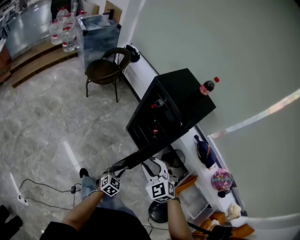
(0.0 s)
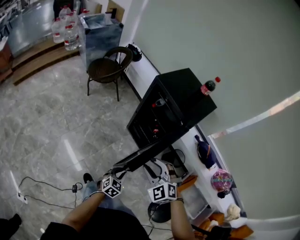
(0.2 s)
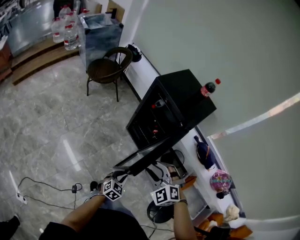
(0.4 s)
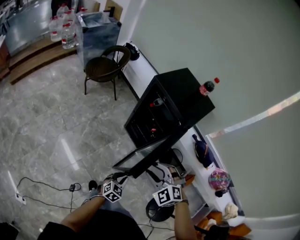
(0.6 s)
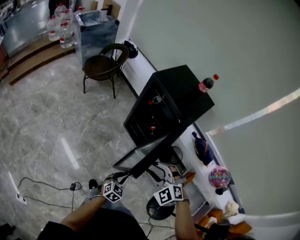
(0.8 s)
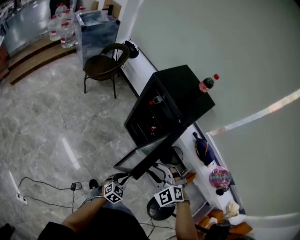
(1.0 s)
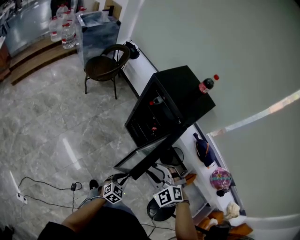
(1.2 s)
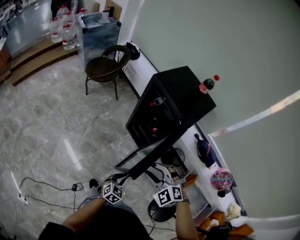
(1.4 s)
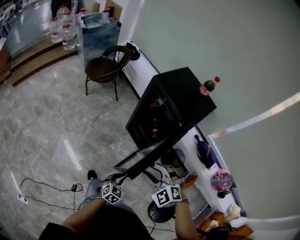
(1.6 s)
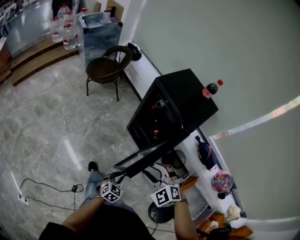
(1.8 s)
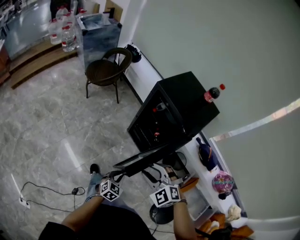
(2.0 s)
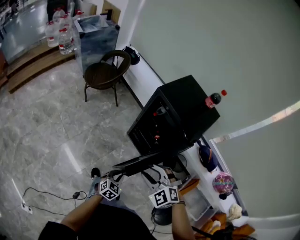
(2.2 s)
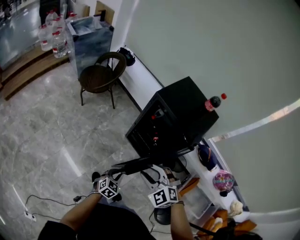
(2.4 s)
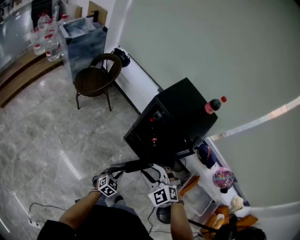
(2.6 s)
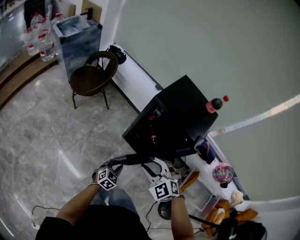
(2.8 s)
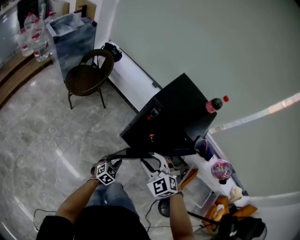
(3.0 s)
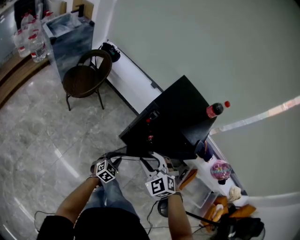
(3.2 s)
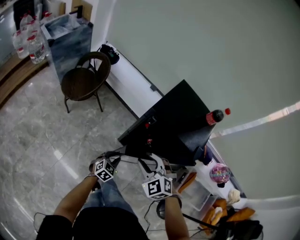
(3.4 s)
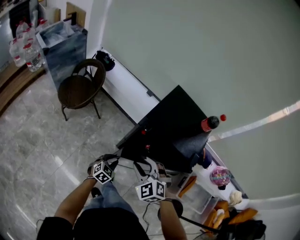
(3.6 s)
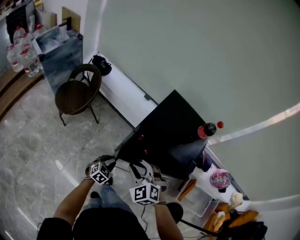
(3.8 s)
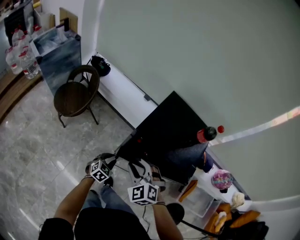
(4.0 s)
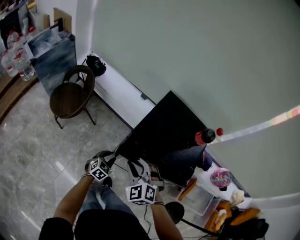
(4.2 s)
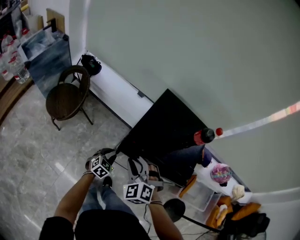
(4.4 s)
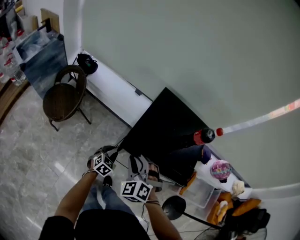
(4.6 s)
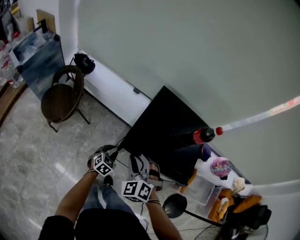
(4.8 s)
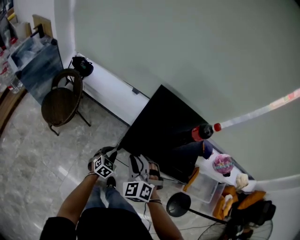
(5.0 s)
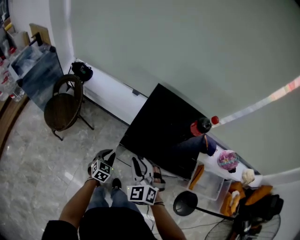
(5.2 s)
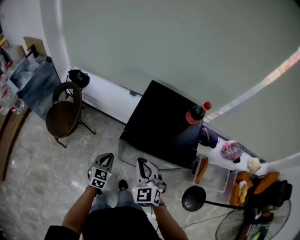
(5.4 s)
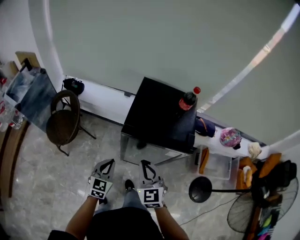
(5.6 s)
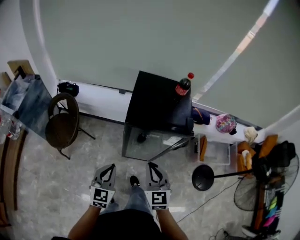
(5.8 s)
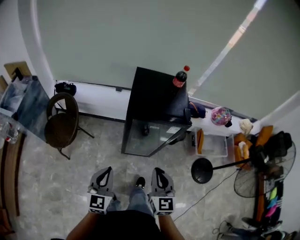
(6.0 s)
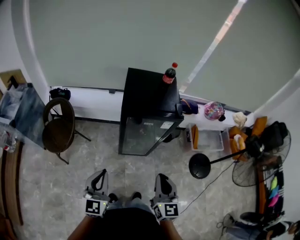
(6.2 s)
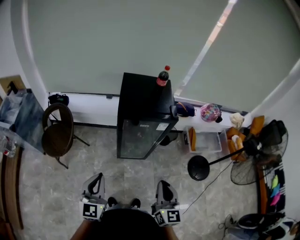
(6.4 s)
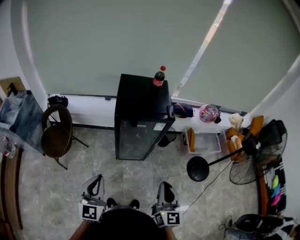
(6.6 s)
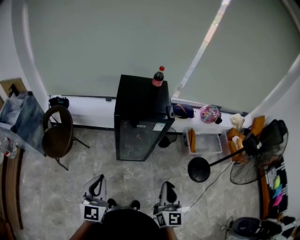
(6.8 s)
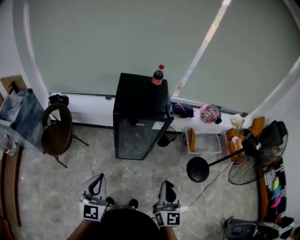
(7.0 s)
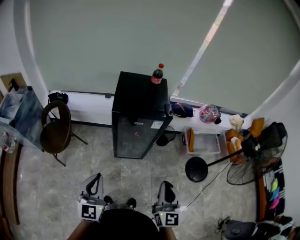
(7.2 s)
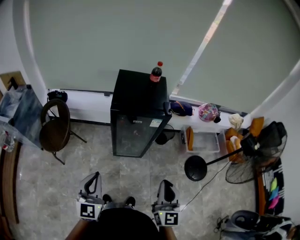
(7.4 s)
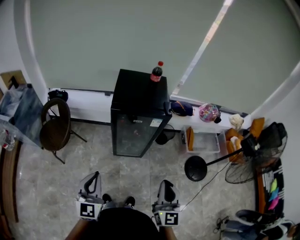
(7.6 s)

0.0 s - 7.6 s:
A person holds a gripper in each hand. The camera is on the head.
1.6 s - 3.0 s: The grippers both shift forward and to the left by roughly 25 cm. The right gripper swivels roughly 20 degrees.
3.0 s - 4.6 s: Both grippers travel together forward, about 25 cm. The right gripper rotates approximately 30 degrees.
4.6 s - 6.0 s: The right gripper travels backward by roughly 25 cm, and twists about 50 degrees clockwise, seen from behind; the left gripper heads upward and backward, covering roughly 35 cm, and tilts its fingers roughly 30 degrees upward.
6.0 s - 7.6 s: The left gripper heads backward and upward, covering some 10 cm, while the right gripper heads to the right, backward and upward, covering about 20 cm.

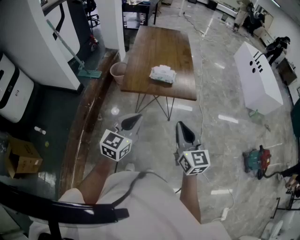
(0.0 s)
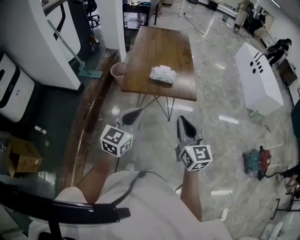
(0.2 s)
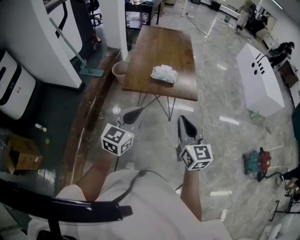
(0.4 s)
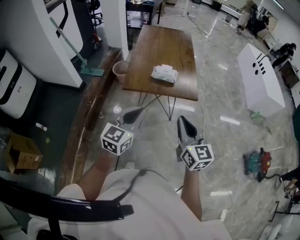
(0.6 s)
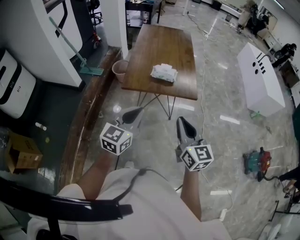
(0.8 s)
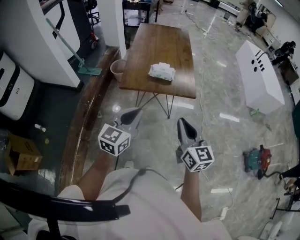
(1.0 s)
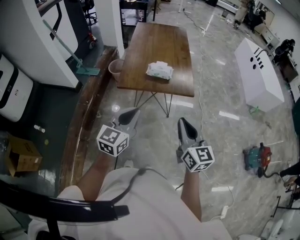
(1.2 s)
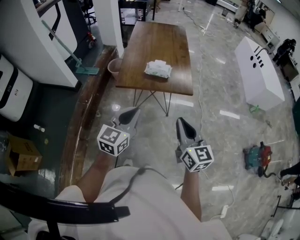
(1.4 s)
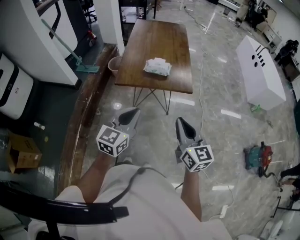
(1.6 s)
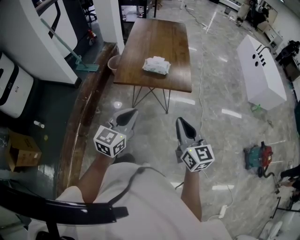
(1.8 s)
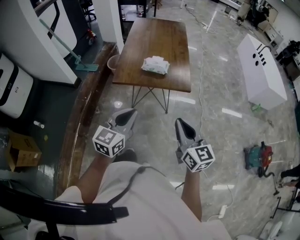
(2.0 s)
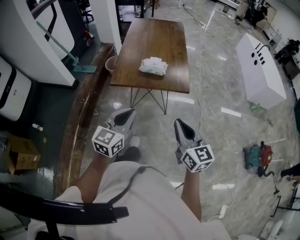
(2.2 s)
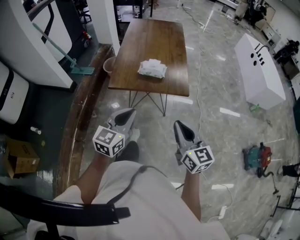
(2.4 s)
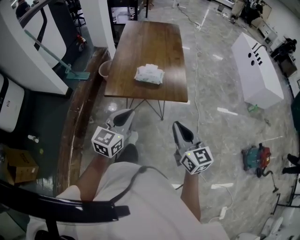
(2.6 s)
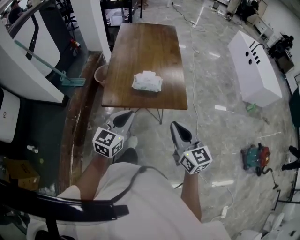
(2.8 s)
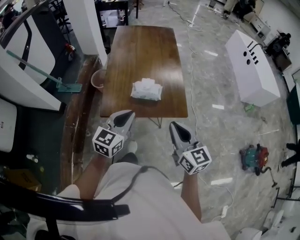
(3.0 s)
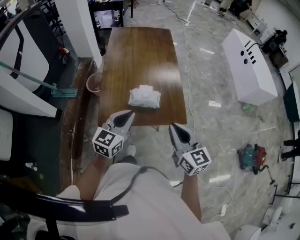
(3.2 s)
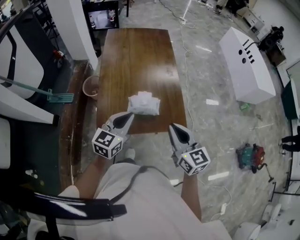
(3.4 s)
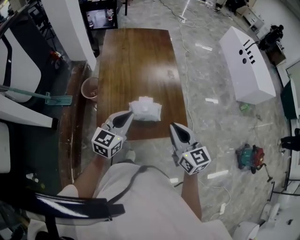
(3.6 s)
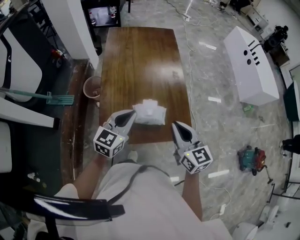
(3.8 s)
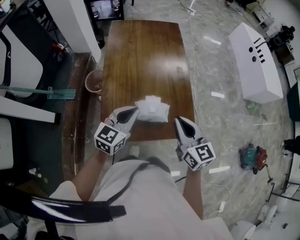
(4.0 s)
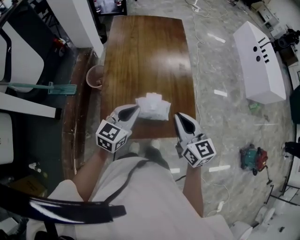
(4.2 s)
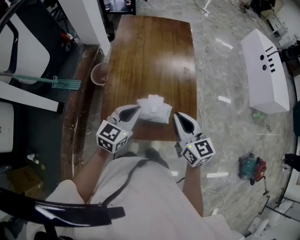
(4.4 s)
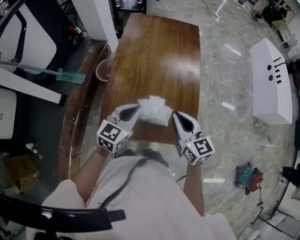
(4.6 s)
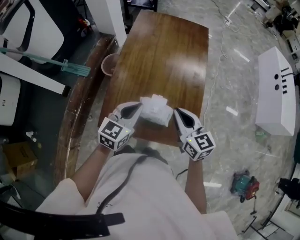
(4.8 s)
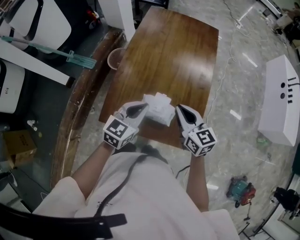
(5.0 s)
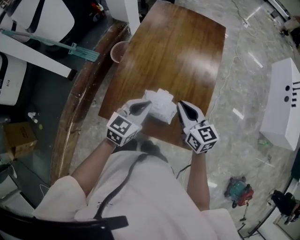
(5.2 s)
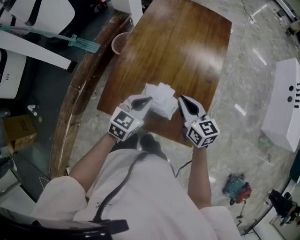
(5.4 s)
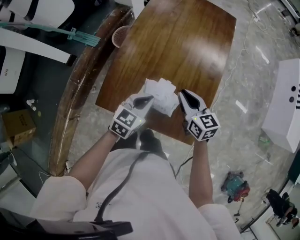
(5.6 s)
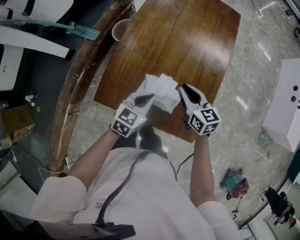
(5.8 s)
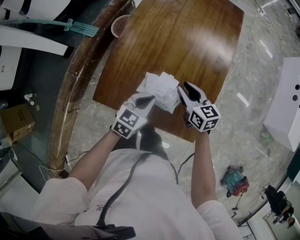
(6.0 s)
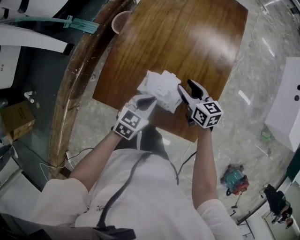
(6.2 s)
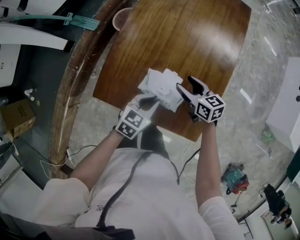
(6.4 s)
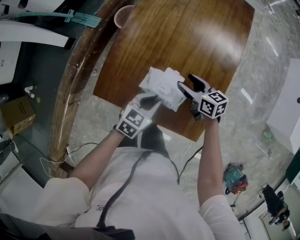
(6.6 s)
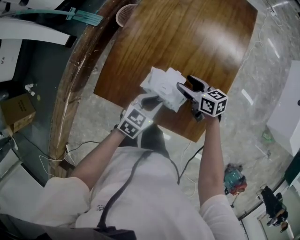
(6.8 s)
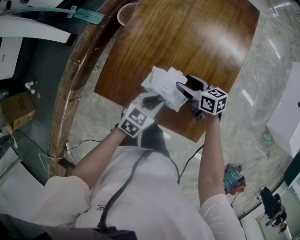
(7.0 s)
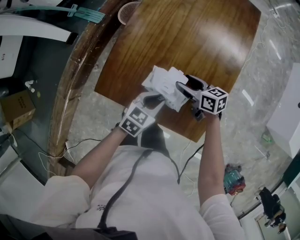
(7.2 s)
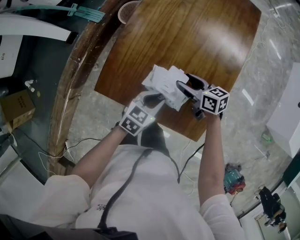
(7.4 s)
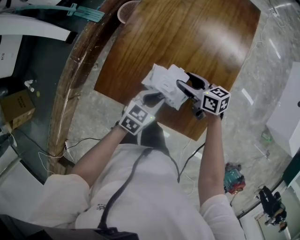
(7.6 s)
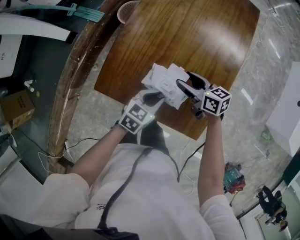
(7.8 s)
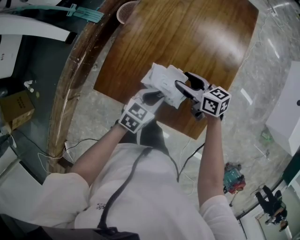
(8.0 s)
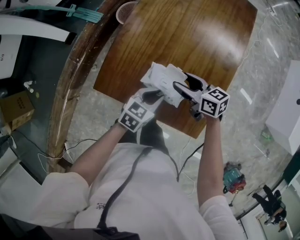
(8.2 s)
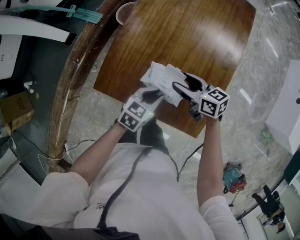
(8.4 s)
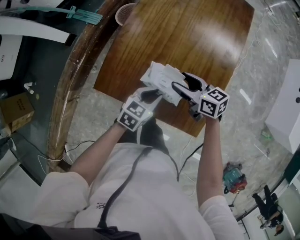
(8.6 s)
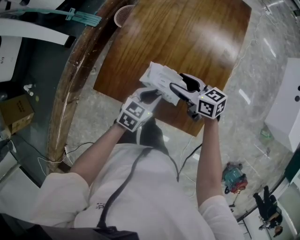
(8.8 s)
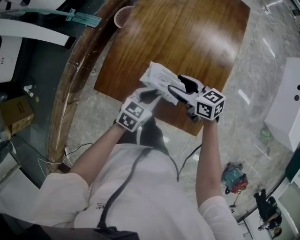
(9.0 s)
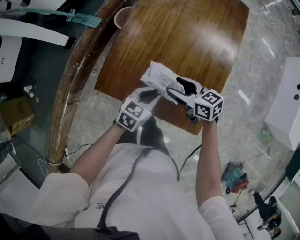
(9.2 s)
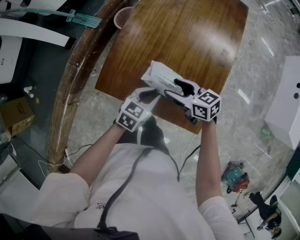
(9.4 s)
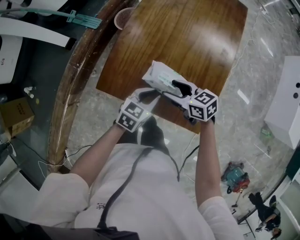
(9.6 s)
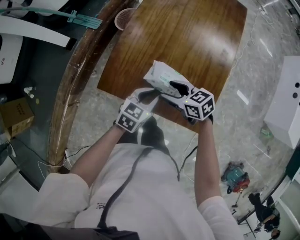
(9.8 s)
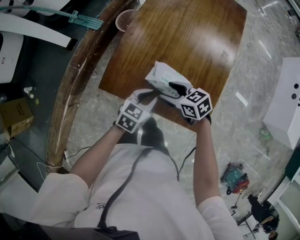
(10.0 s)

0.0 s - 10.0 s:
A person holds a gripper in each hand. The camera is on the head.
0.0 s - 1.4 s: The grippers stay close to where they were, moving slightly.
1.4 s - 2.8 s: Both grippers travel together forward, roughly 15 cm.
2.8 s - 4.2 s: The two grippers go about 30 cm forward.
4.2 s - 5.8 s: The left gripper goes approximately 15 cm downward, and turns by approximately 20 degrees, while the right gripper heads downward and forward, covering roughly 20 cm, and changes its angle by about 30 degrees.
5.8 s - 7.2 s: Both grippers move downward, roughly 10 cm. The right gripper rotates some 30 degrees, and opens.
7.2 s - 8.6 s: The right gripper heads upward, covering roughly 5 cm.
8.6 s - 10.0 s: The right gripper moves to the left and backward, some 10 cm.

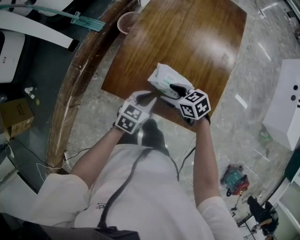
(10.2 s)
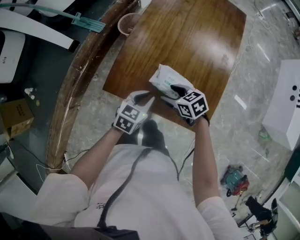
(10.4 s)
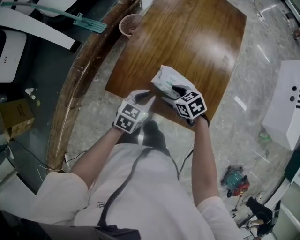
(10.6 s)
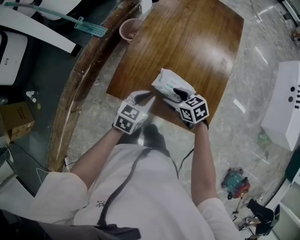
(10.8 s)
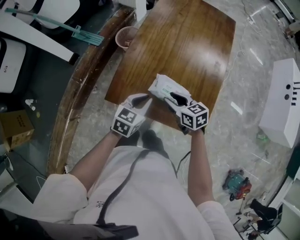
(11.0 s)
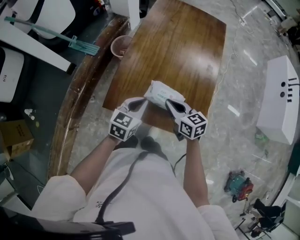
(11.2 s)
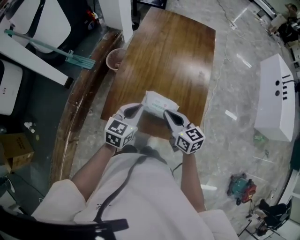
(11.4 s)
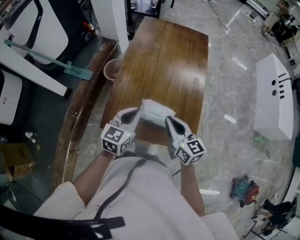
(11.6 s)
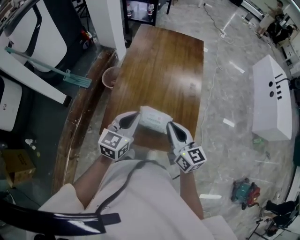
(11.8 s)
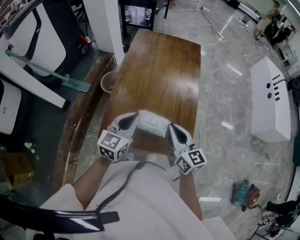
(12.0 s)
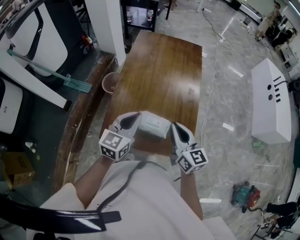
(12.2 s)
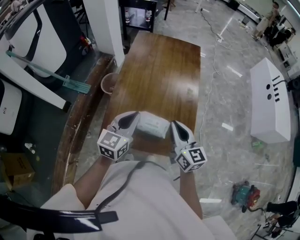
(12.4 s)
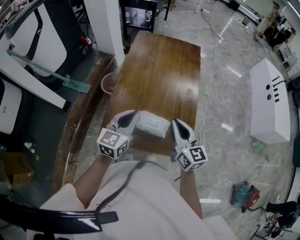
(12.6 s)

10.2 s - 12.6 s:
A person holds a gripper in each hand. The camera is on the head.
10.2 s - 11.4 s: Both grippers move upward, some 15 cm. The right gripper rotates roughly 40 degrees, and closes its fingers.
11.4 s - 12.6 s: The left gripper is displaced upward by about 10 cm. The right gripper moves upward and to the right, some 15 cm, and turns by some 20 degrees.

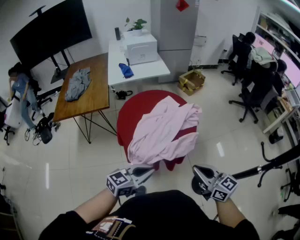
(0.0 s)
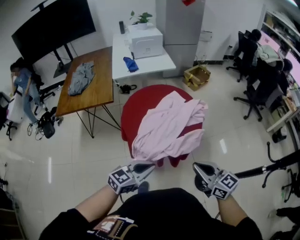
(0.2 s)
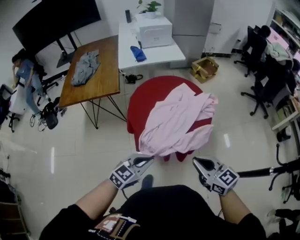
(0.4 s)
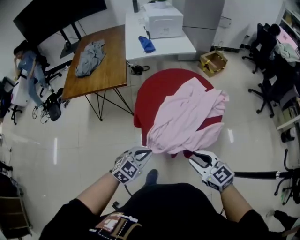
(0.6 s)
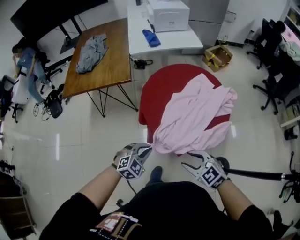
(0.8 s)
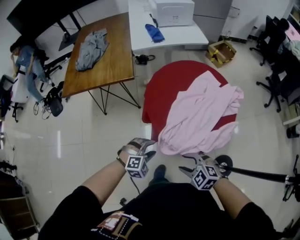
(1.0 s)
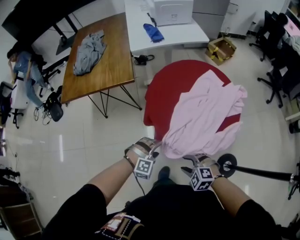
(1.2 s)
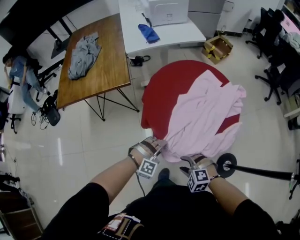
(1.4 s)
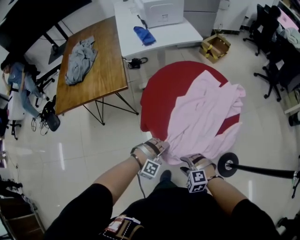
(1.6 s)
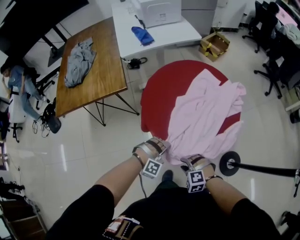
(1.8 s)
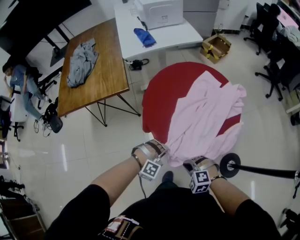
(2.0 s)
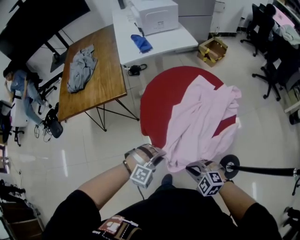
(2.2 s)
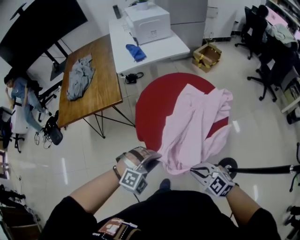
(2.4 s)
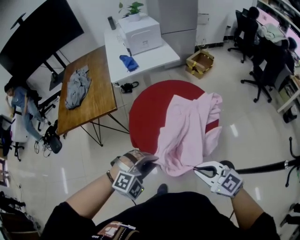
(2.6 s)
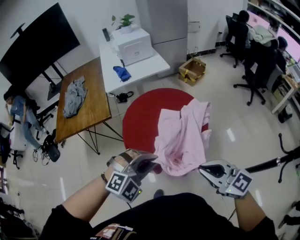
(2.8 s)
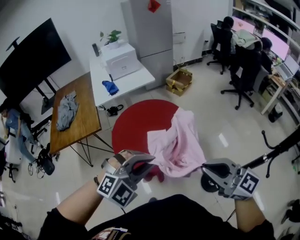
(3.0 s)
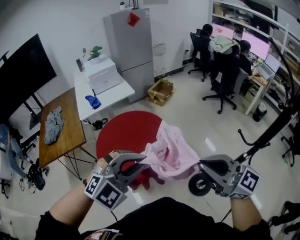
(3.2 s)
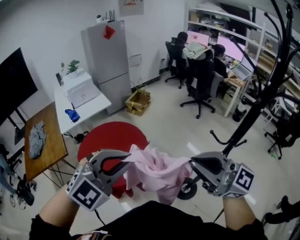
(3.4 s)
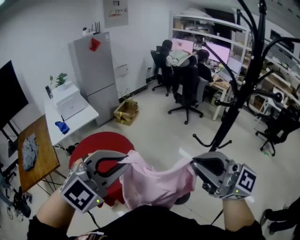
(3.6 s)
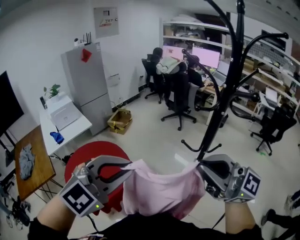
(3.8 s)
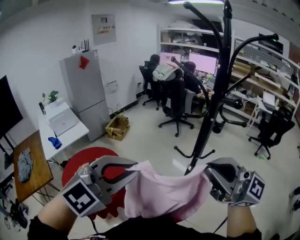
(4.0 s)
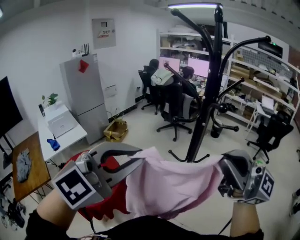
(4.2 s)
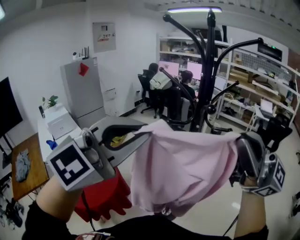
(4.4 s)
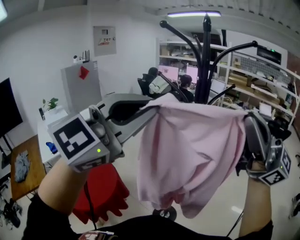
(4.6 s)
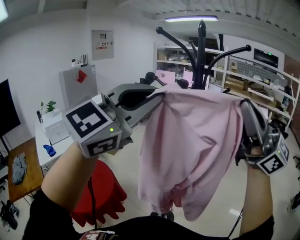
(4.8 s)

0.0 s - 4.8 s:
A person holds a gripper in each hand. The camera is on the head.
0.0 s - 1.6 s: The left gripper goes approximately 40 cm downward, forward and to the left, twists roughly 90 degrees clockwise, seen from behind, and opens. The right gripper shifts some 40 cm downward and to the left, points its fingers some 50 degrees further downward, and opens.
1.6 s - 3.2 s: Both grippers move upward and to the right, roughly 60 cm. The right gripper tilts its fingers about 70 degrees upward, and closes its fingers, while the left gripper angles its fingers upward, by approximately 40 degrees, and closes its fingers.
3.2 s - 4.8 s: The right gripper changes place by some 50 cm, and turns by roughly 50 degrees, while the left gripper shifts about 35 cm upward, and tips its fingers upward by approximately 30 degrees.
